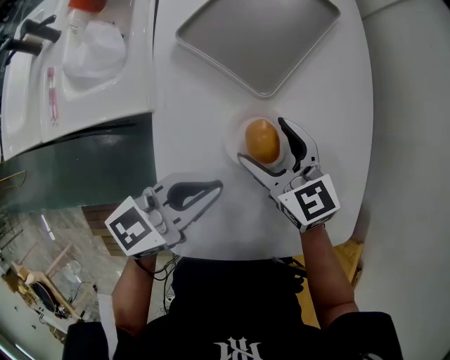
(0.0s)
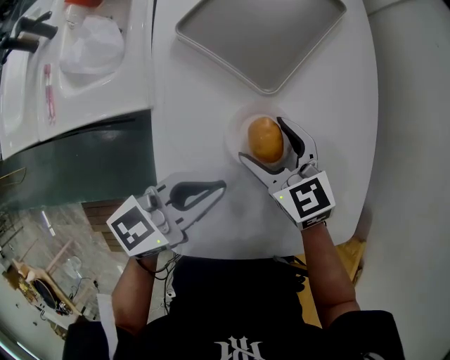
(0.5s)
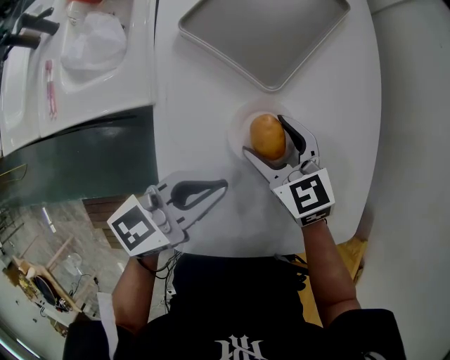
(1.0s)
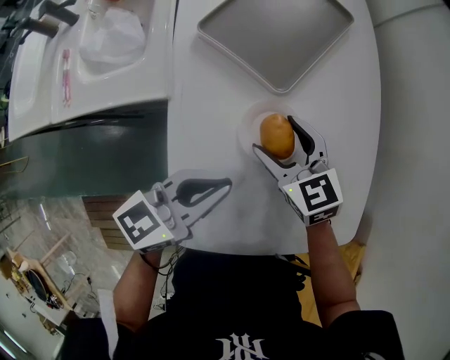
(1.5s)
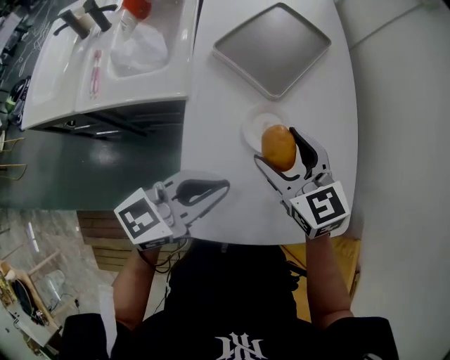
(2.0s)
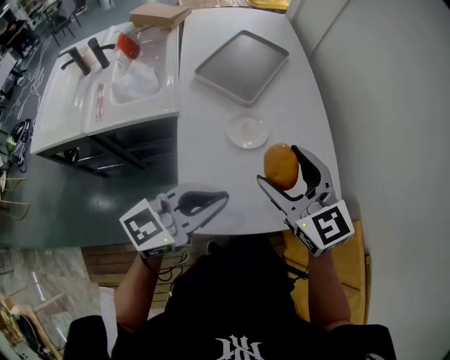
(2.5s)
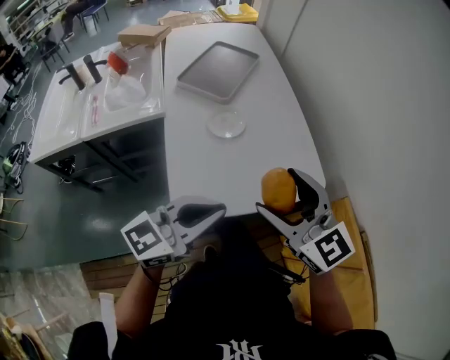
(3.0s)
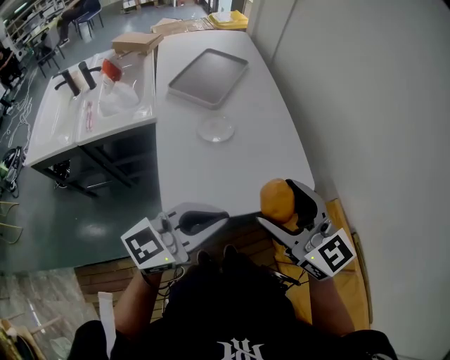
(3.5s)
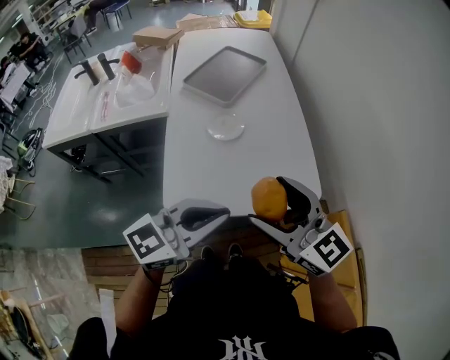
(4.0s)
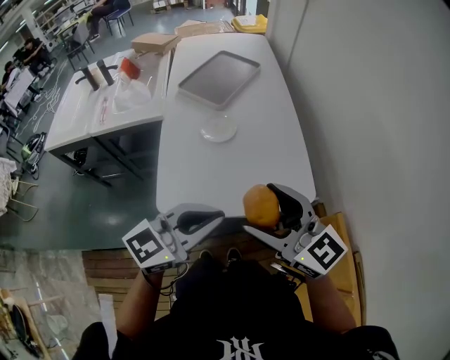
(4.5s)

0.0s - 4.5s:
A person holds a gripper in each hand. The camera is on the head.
0.0s - 2.0s: The left gripper goes approximately 10 cm backward and upward; the right gripper moves upward and backward, some 15 cm.
2.0s - 4.5s: The left gripper moves to the right, backward and upward, some 30 cm; the right gripper heads backward, to the right and upward, covering roughly 40 cm, and swivels about 30 degrees.

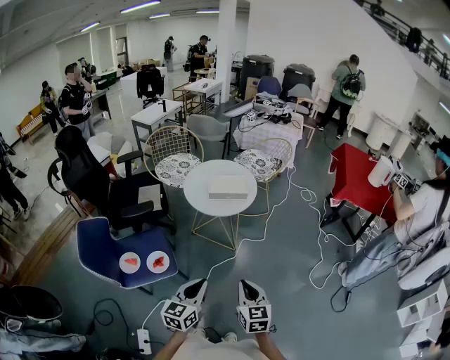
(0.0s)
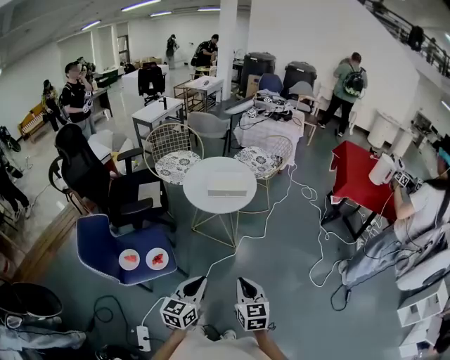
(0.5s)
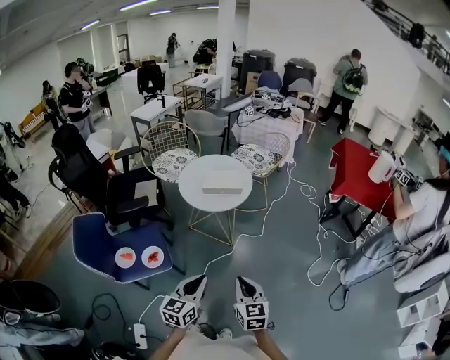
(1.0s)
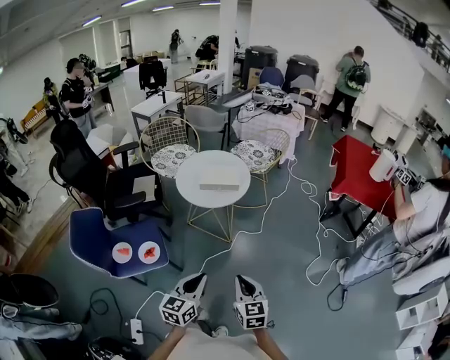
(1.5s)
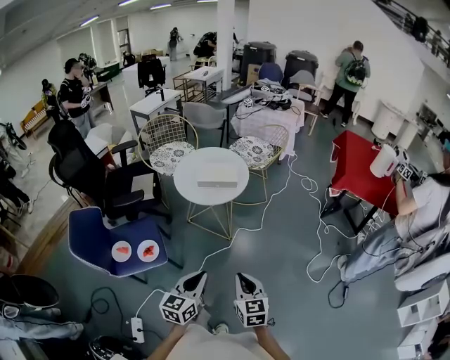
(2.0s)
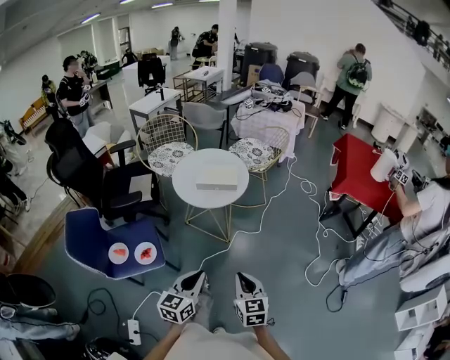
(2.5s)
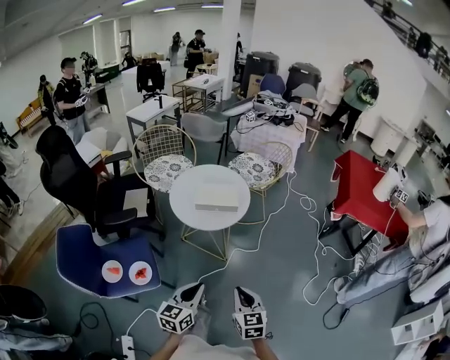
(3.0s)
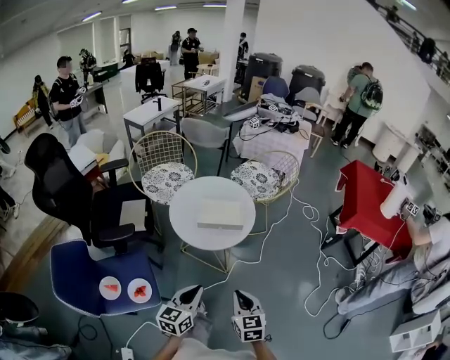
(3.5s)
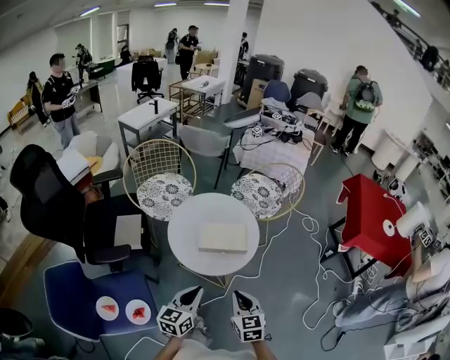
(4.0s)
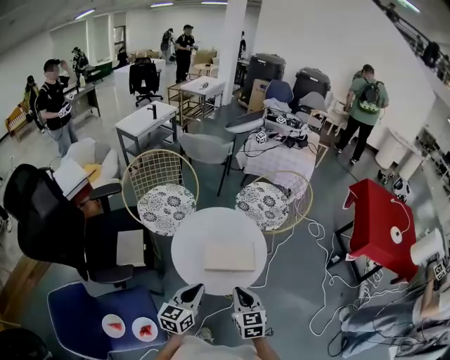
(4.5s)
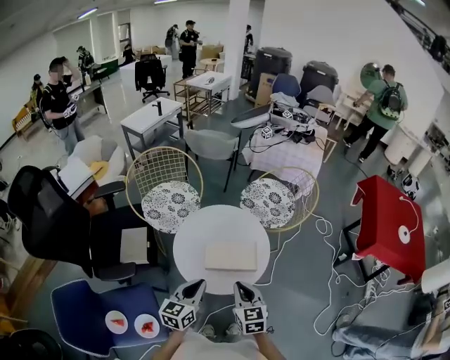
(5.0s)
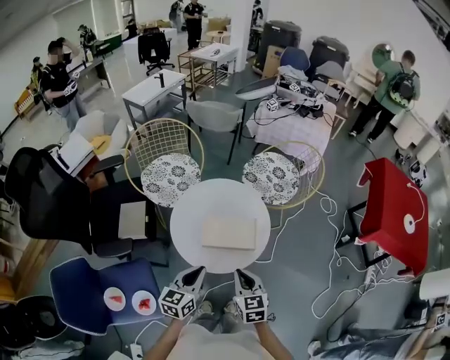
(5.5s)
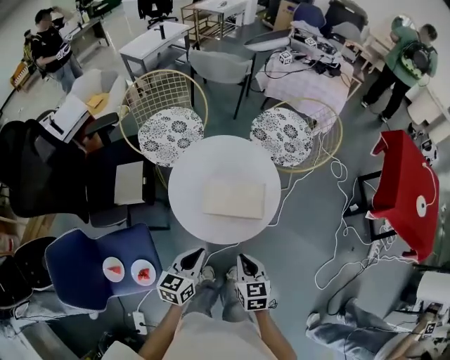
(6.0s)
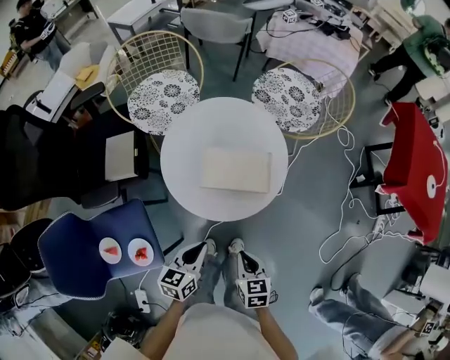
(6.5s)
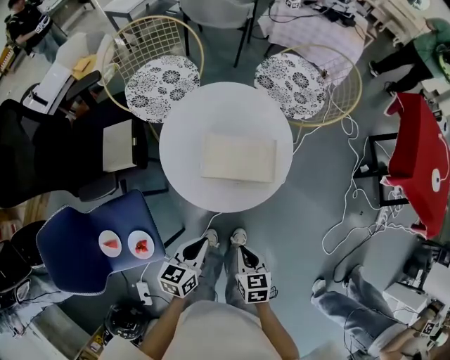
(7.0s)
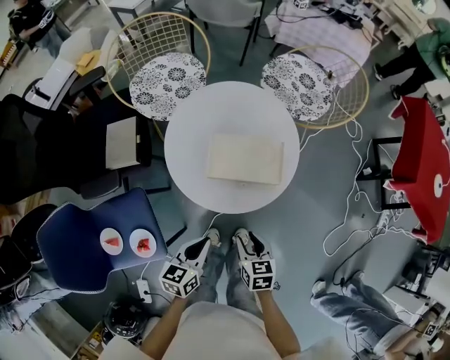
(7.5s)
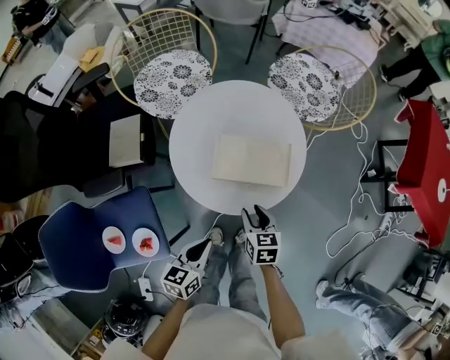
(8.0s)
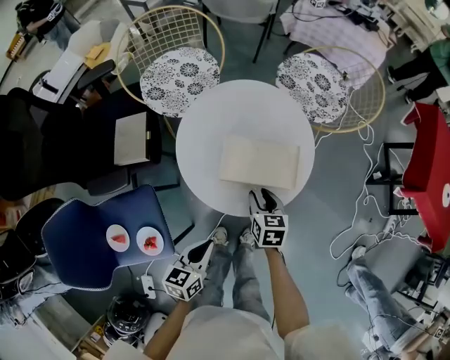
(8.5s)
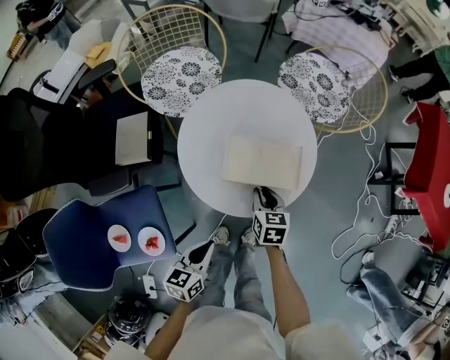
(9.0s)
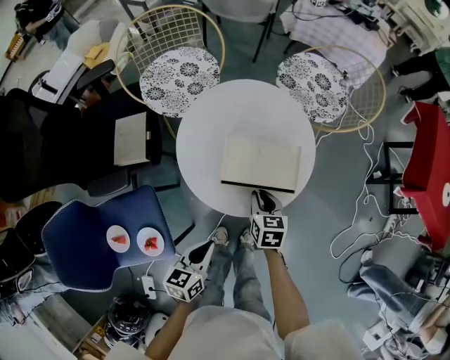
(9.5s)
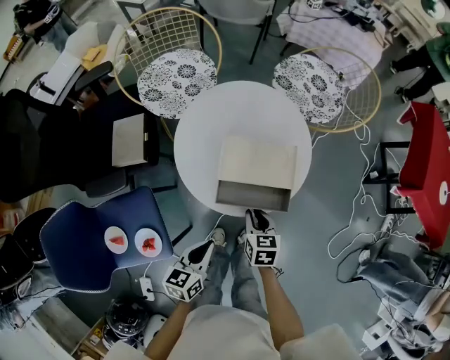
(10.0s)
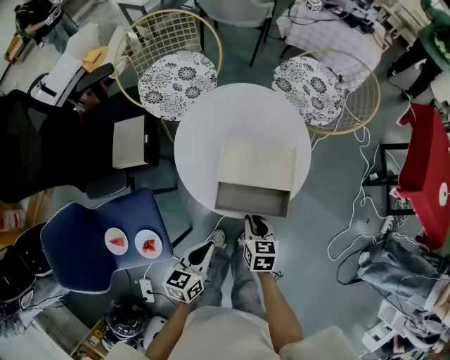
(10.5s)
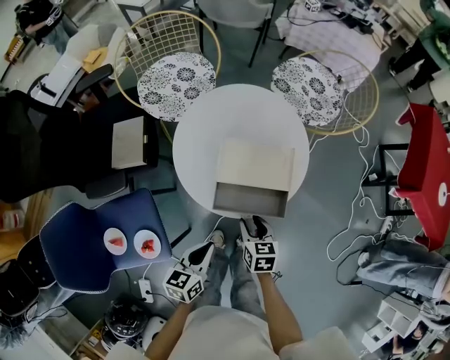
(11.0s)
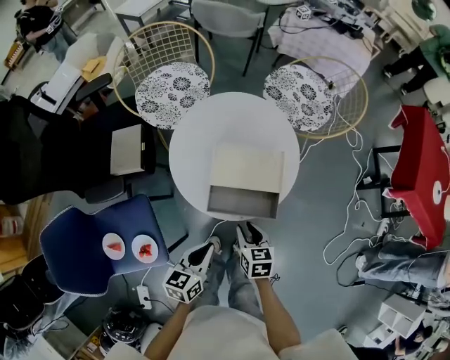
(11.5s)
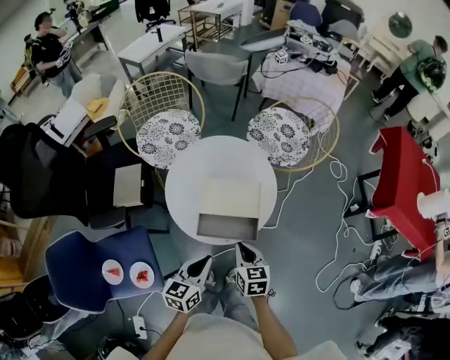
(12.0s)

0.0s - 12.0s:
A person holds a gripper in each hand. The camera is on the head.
0.0s - 2.0s: The grippers both shift to the right by roughly 10 cm.
2.0s - 4.0s: The two grippers go approximately 35 cm forward.
4.0s - 6.0s: The grippers both shift forward and downward by approximately 10 cm.
6.0s - 8.0s: The right gripper shifts some 15 cm downward and forward, and opens its fingers, while the left gripper travels downward and backward by about 10 cm.
8.0s - 10.0s: The right gripper travels forward and back again, roughly 5 cm each way, and closes up.
10.0s - 12.0s: The right gripper heads upward, covering about 10 cm, and opens, then closes again, while the left gripper is displaced upward and to the right by roughly 10 cm.

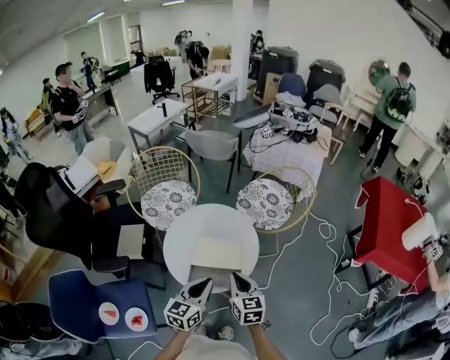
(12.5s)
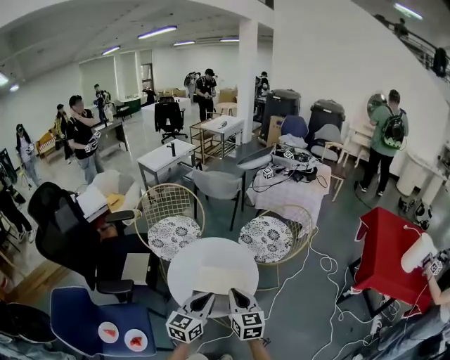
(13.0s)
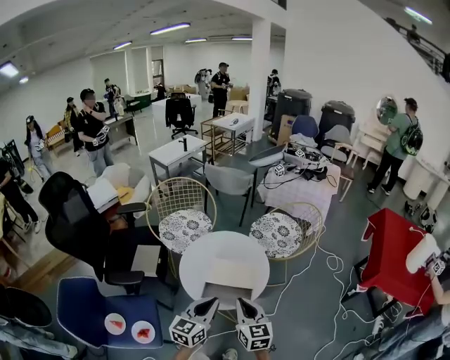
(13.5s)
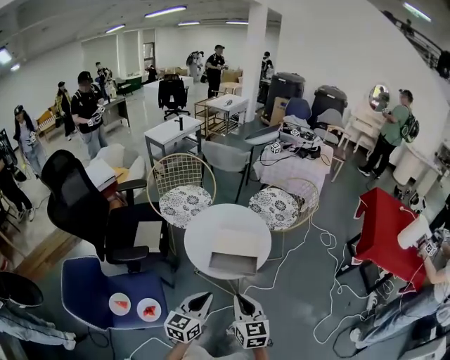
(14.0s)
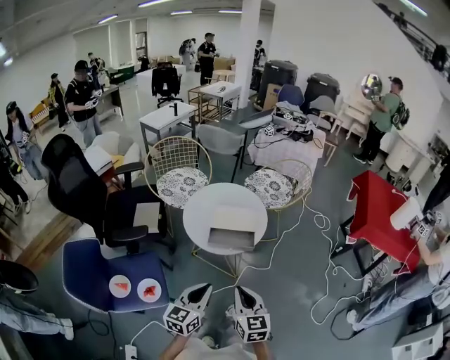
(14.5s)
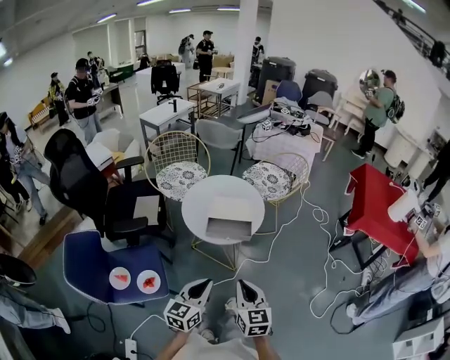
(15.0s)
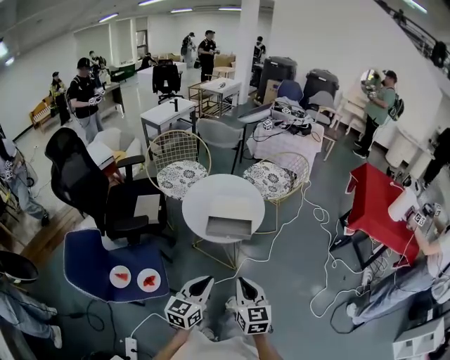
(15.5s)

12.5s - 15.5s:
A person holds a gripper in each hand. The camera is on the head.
12.5s - 14.0s: The left gripper shifts some 20 cm backward and to the left, while the right gripper moves backward, approximately 20 cm.
14.0s - 15.5s: Both grippers travel together backward, some 10 cm.

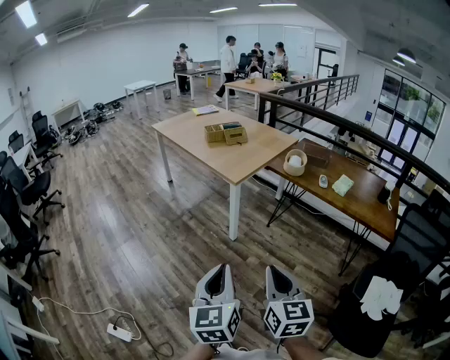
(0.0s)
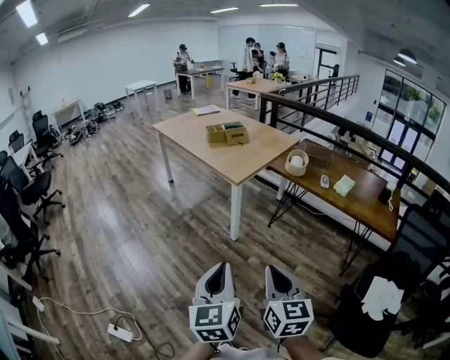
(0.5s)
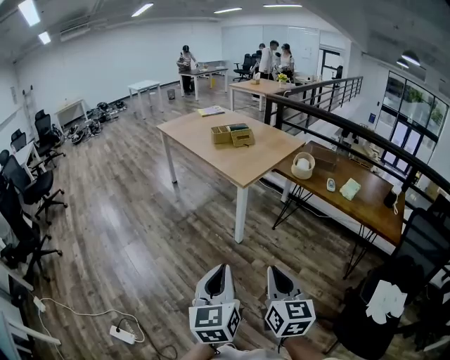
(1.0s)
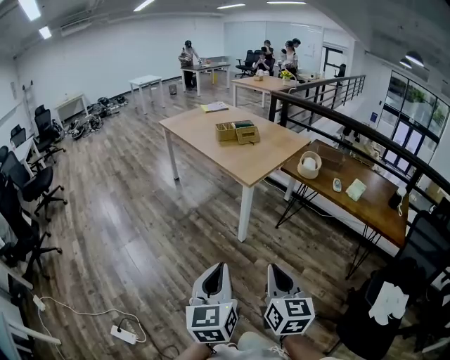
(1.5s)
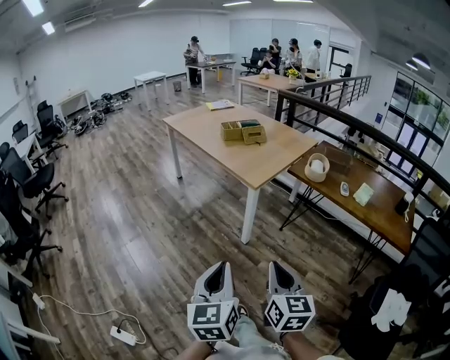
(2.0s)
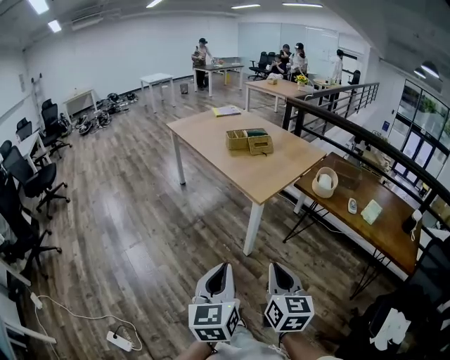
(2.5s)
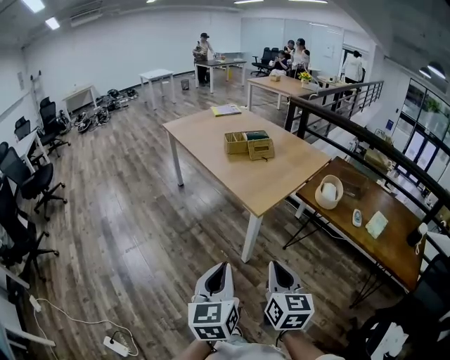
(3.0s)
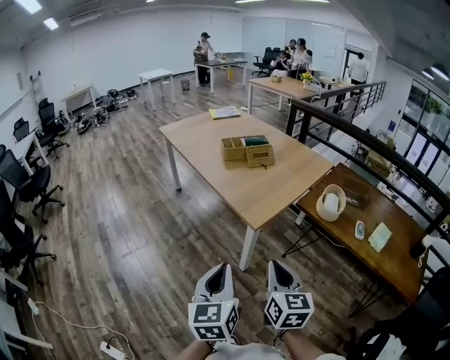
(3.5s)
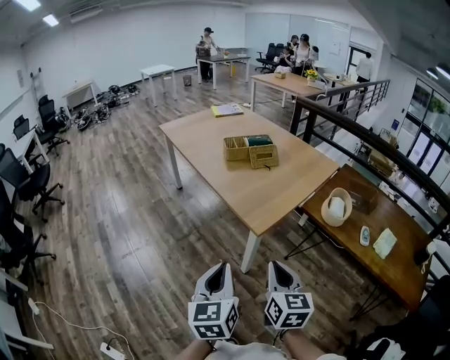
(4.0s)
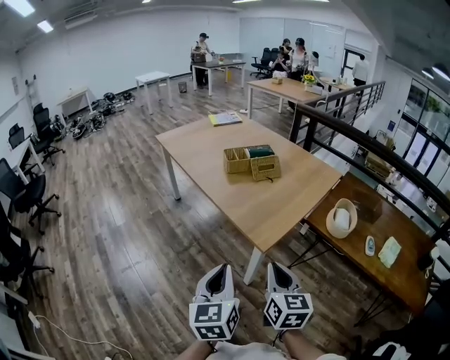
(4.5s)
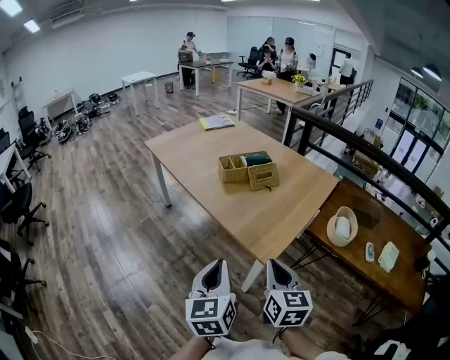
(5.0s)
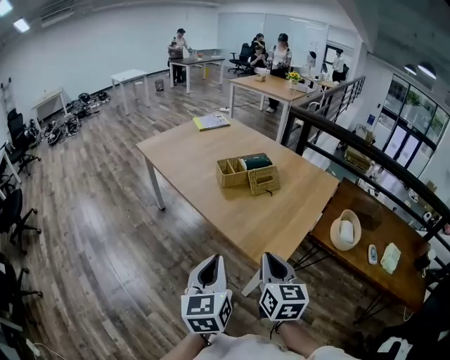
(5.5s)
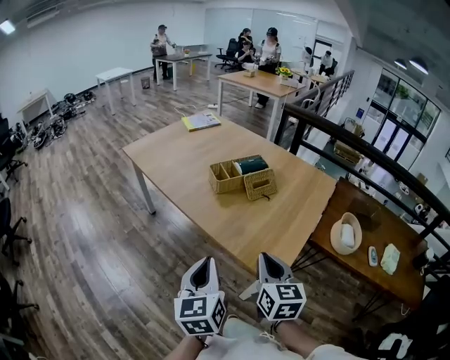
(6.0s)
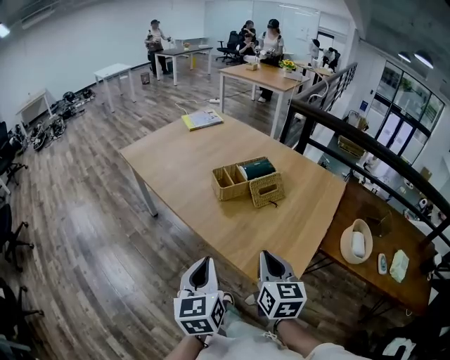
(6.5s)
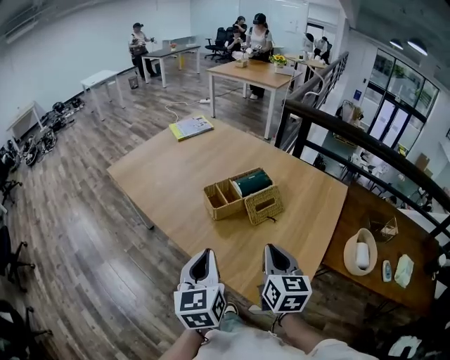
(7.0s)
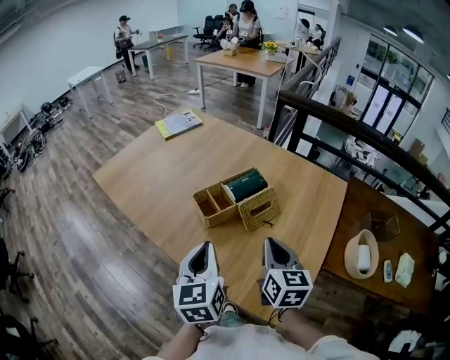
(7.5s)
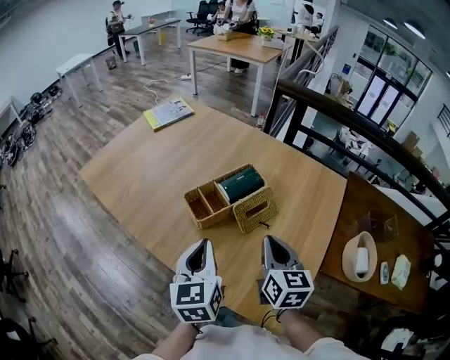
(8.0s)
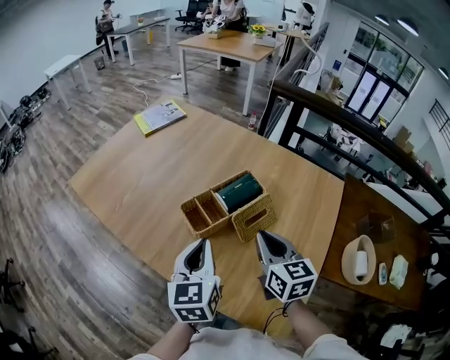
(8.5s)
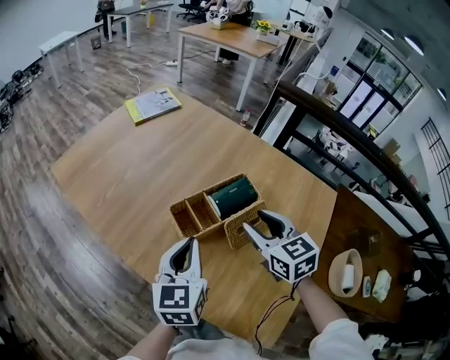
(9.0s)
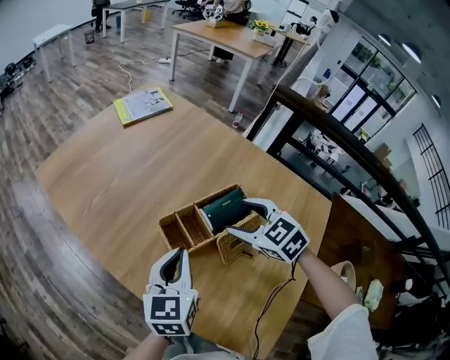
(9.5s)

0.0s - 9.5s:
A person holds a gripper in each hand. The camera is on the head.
0.0s - 2.0s: Both grippers travel together forward and to the left, about 10 cm.
2.0s - 4.0s: Both grippers travel together forward, about 30 cm.
4.0s - 5.5s: Both grippers move forward and to the left, some 25 cm.
5.5s - 7.5s: Both grippers move forward, approximately 35 cm.
7.5s - 9.5s: The two grippers go about 20 cm forward. The right gripper rotates some 60 degrees, and opens up.
